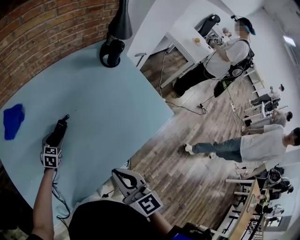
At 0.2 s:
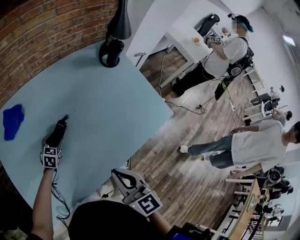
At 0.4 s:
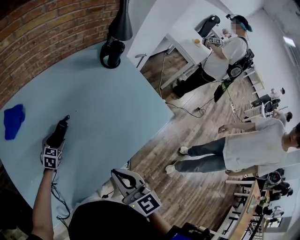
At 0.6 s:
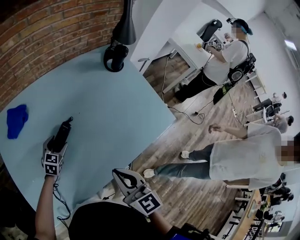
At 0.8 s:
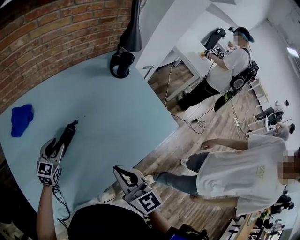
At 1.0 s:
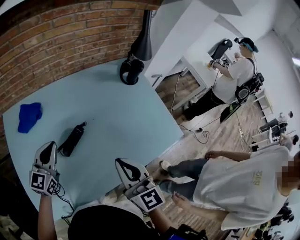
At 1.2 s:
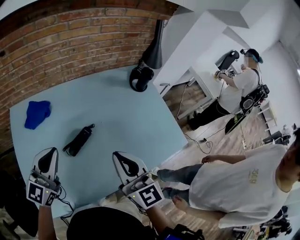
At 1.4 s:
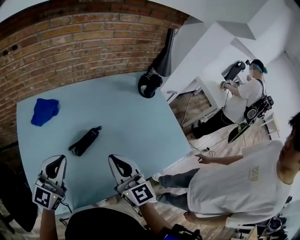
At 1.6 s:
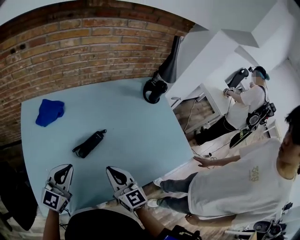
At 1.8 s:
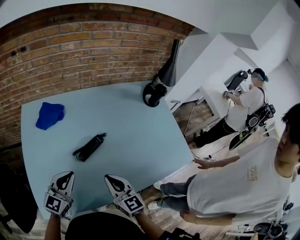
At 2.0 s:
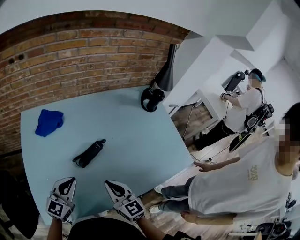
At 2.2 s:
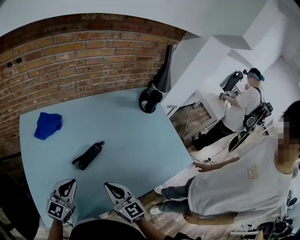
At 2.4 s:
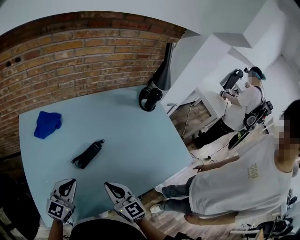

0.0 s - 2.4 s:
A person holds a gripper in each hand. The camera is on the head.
0.0 s - 1.2 s: The right gripper moves upward, forward and to the left, about 15 cm, and changes its angle by some 20 degrees; the left gripper travels upward by some 30 cm, tips its fingers upward by about 50 degrees, and closes up.
1.2 s - 2.4 s: The right gripper moves downward and to the left, about 15 cm, while the left gripper moves downward and backward, approximately 15 cm.

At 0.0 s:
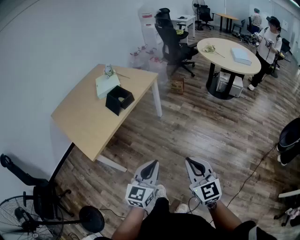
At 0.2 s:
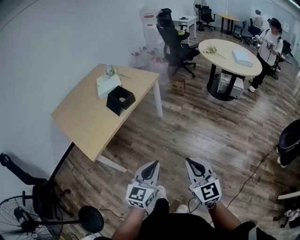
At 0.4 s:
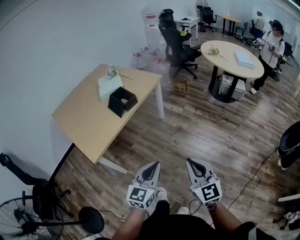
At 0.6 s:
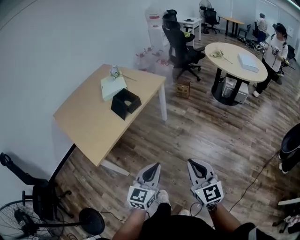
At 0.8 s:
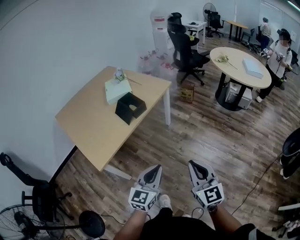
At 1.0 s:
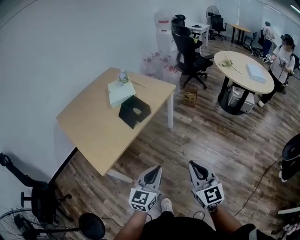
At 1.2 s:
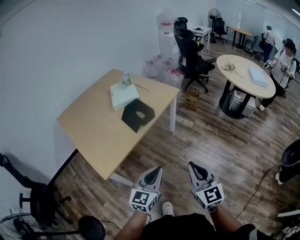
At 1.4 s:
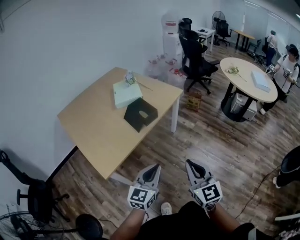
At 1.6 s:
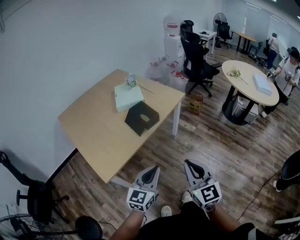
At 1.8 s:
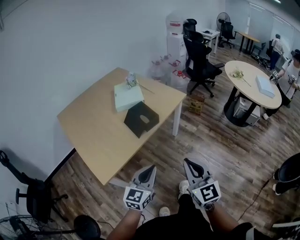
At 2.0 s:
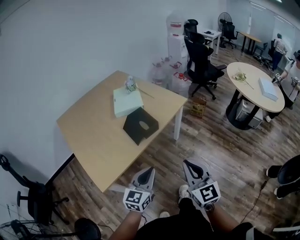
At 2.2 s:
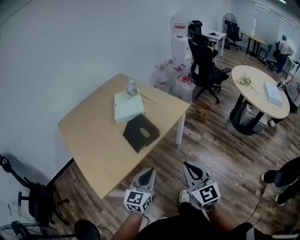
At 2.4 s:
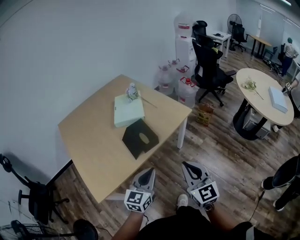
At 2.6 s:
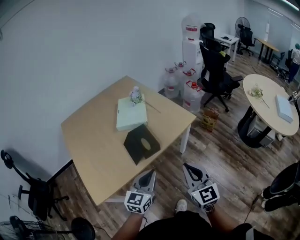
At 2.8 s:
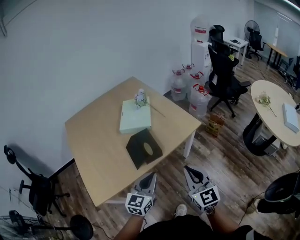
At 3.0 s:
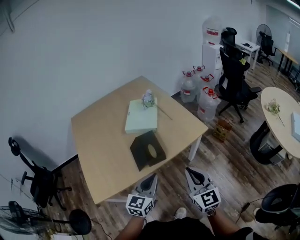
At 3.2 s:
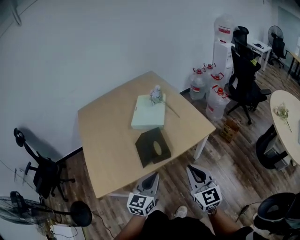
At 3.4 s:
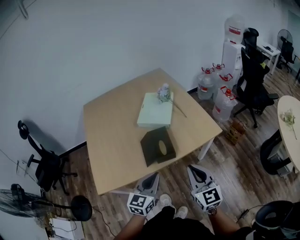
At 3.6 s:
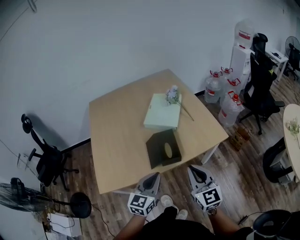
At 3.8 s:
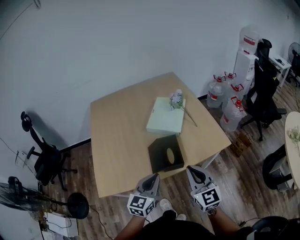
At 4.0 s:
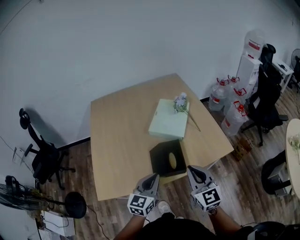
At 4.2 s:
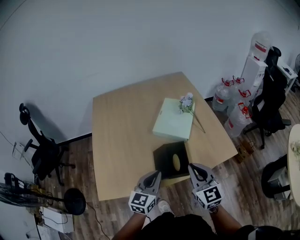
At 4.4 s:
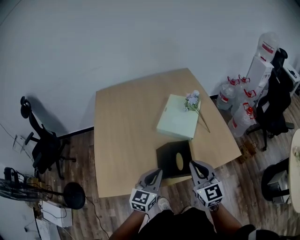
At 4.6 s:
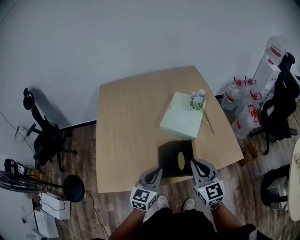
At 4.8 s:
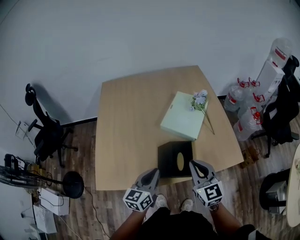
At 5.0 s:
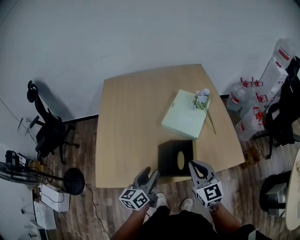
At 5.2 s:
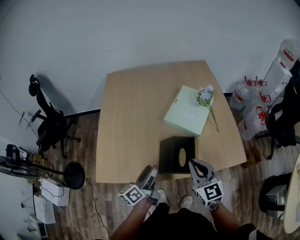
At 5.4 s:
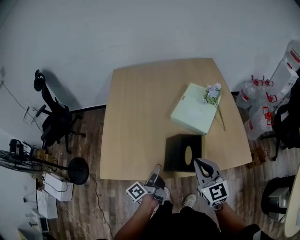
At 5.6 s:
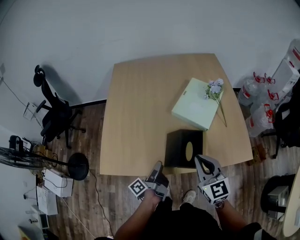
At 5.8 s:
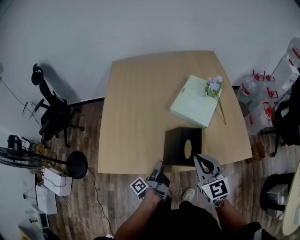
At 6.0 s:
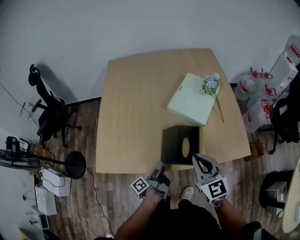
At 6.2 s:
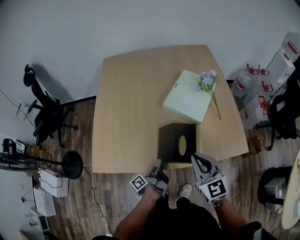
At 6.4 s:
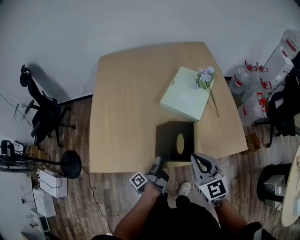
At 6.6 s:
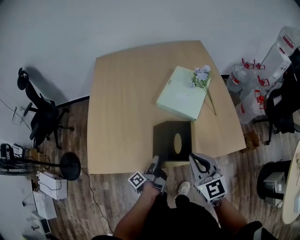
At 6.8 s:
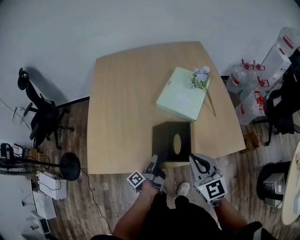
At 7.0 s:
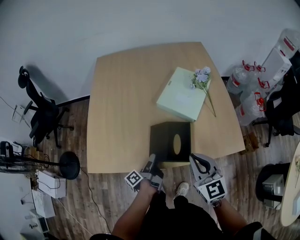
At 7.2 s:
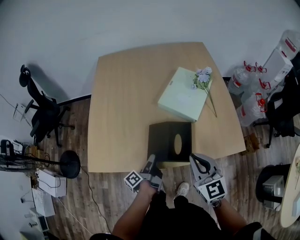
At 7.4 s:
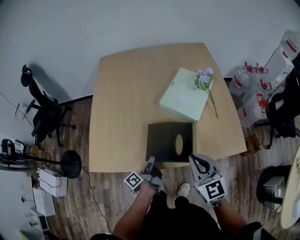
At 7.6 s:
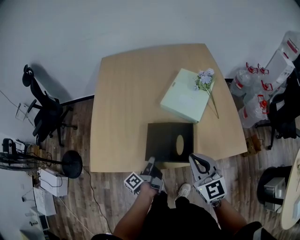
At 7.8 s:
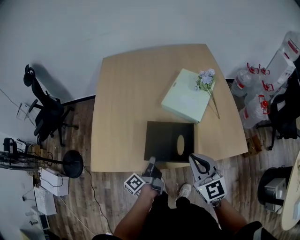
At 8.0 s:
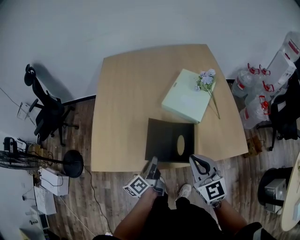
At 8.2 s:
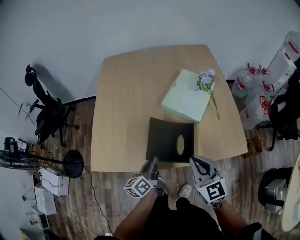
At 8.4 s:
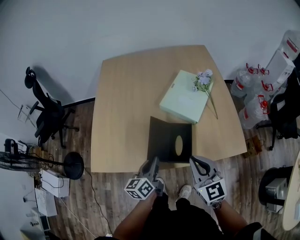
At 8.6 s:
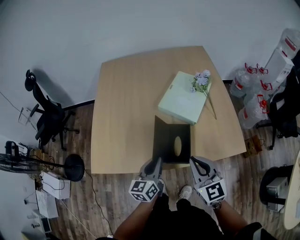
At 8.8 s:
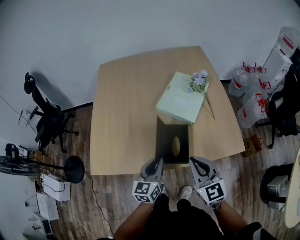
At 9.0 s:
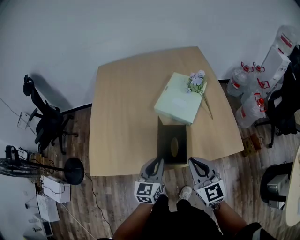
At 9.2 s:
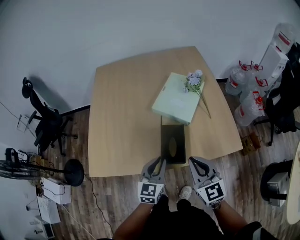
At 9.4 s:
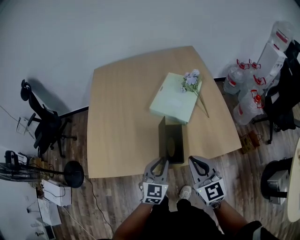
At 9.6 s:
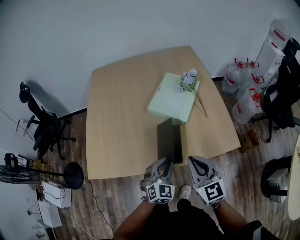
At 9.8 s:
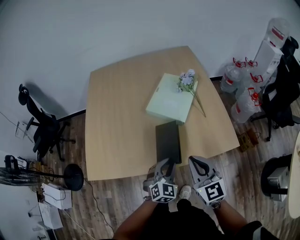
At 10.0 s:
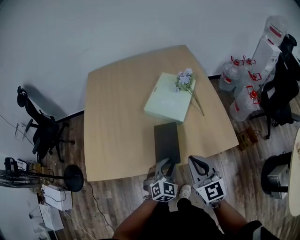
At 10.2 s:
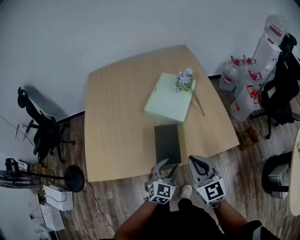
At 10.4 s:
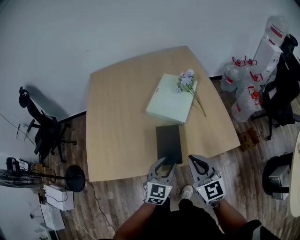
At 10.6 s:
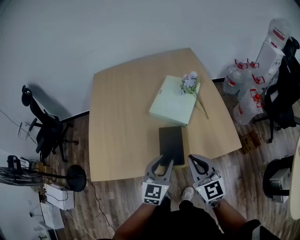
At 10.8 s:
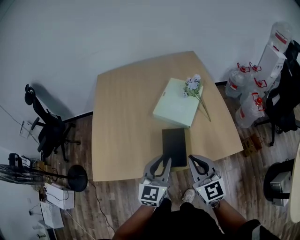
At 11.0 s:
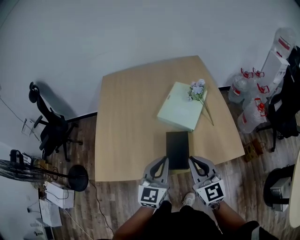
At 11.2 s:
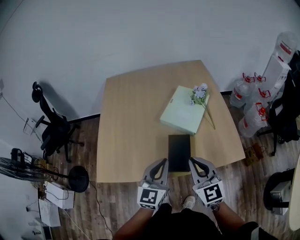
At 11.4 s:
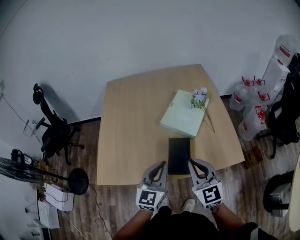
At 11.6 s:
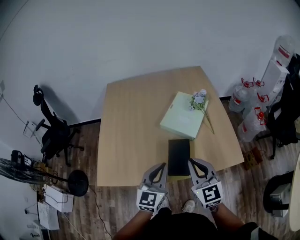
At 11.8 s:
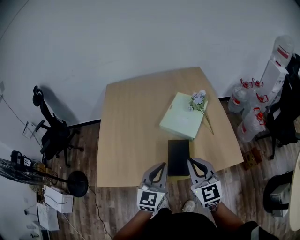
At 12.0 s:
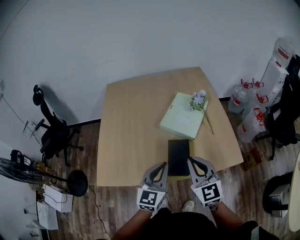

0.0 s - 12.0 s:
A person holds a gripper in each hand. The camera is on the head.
0.0 s - 1.6 s: The grippers both shift forward and to the left by approximately 25 cm.
1.6 s - 3.0 s: The two grippers go some 30 cm forward. The left gripper swivels approximately 20 degrees.
3.0 s - 4.4 s: The two grippers go approximately 20 cm forward and to the left.
4.4 s - 6.0 s: The left gripper goes about 15 cm downward, rolls counterclockwise, seen from behind, by about 100 degrees, and opens up.
6.0 s - 7.6 s: The left gripper closes its fingers.
7.6 s - 9.0 s: The left gripper goes roughly 10 cm upward and to the right, and rolls clockwise, seen from behind, by some 80 degrees.
9.0 s - 10.4 s: The left gripper travels to the right by approximately 10 cm, changes its angle by roughly 20 degrees, and opens up.
10.4 s - 12.0 s: The right gripper is displaced upward by approximately 5 cm. The left gripper goes approximately 15 cm upward and to the left, and closes its fingers.

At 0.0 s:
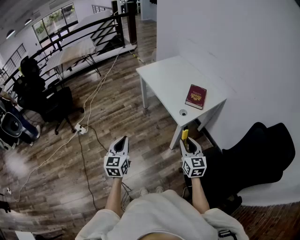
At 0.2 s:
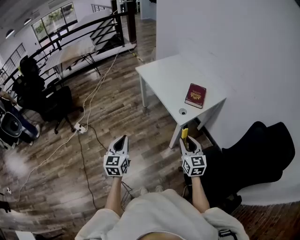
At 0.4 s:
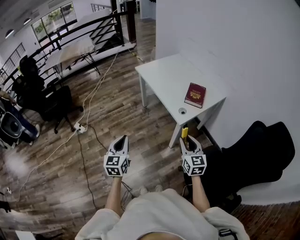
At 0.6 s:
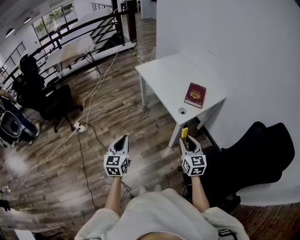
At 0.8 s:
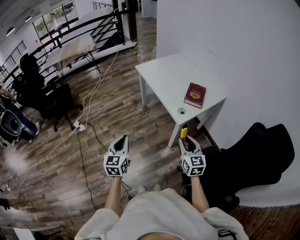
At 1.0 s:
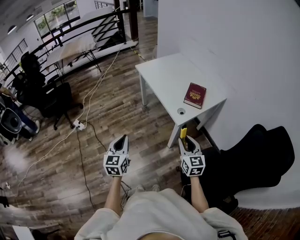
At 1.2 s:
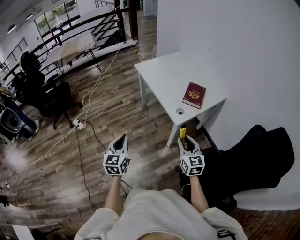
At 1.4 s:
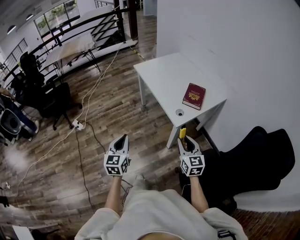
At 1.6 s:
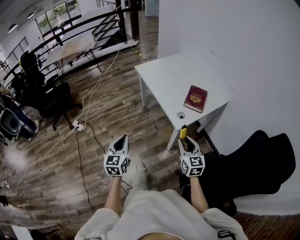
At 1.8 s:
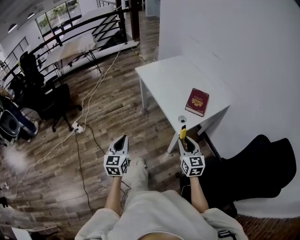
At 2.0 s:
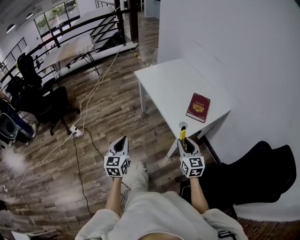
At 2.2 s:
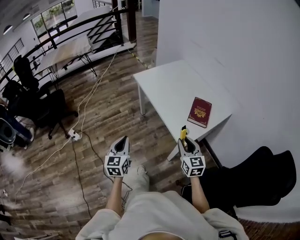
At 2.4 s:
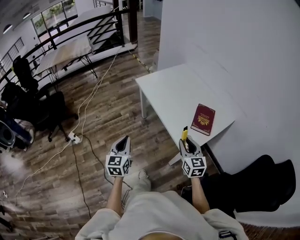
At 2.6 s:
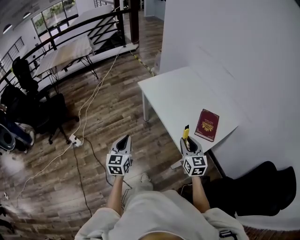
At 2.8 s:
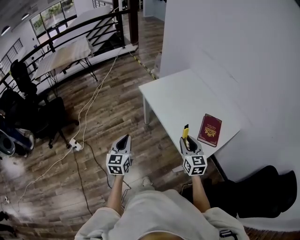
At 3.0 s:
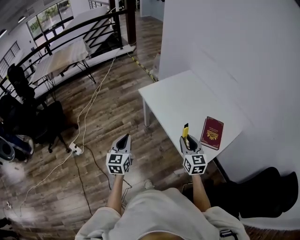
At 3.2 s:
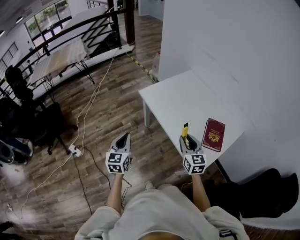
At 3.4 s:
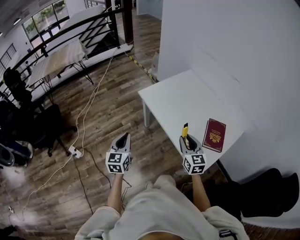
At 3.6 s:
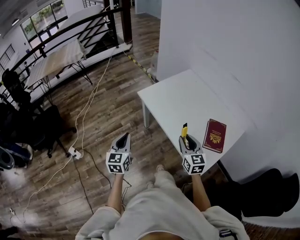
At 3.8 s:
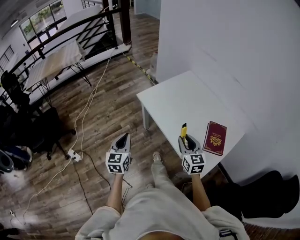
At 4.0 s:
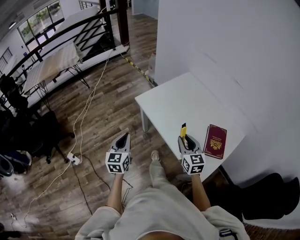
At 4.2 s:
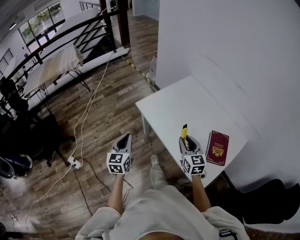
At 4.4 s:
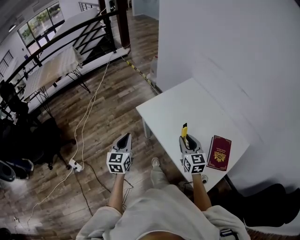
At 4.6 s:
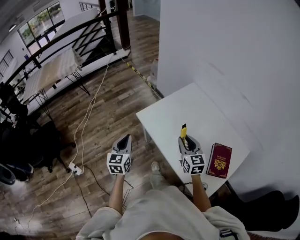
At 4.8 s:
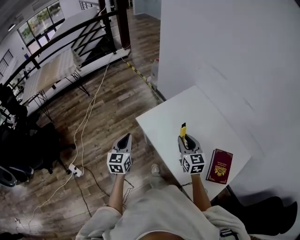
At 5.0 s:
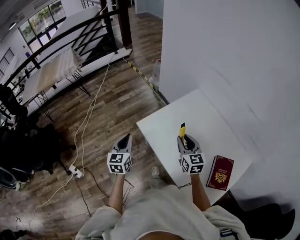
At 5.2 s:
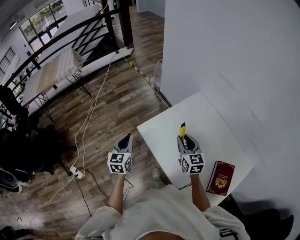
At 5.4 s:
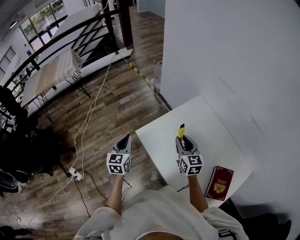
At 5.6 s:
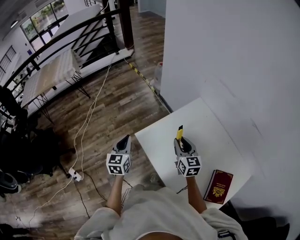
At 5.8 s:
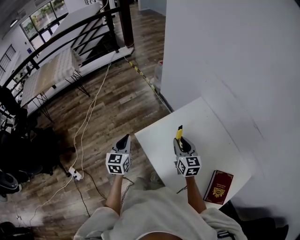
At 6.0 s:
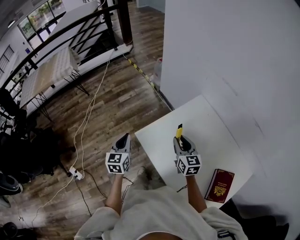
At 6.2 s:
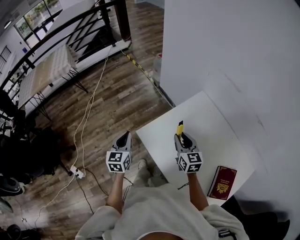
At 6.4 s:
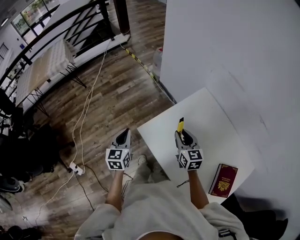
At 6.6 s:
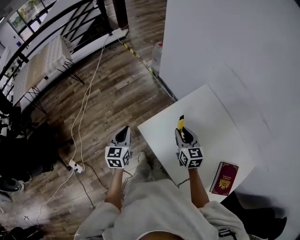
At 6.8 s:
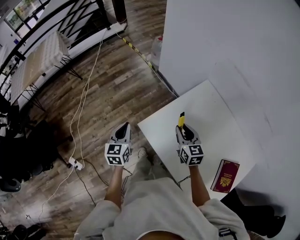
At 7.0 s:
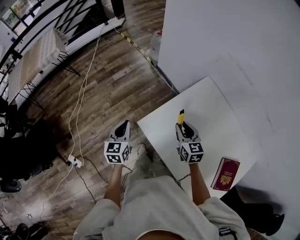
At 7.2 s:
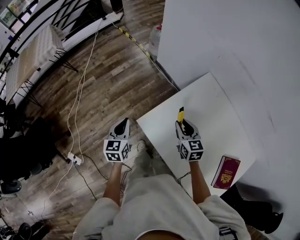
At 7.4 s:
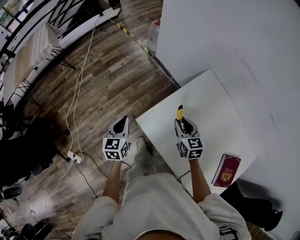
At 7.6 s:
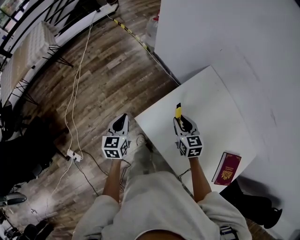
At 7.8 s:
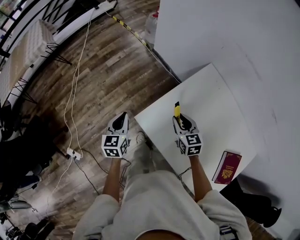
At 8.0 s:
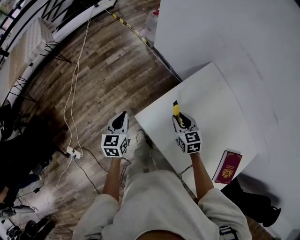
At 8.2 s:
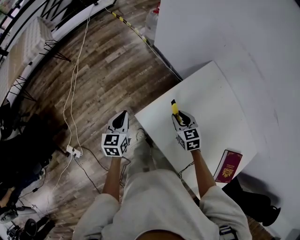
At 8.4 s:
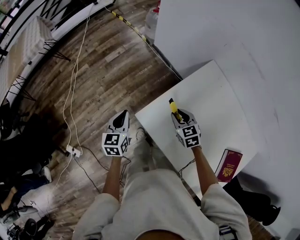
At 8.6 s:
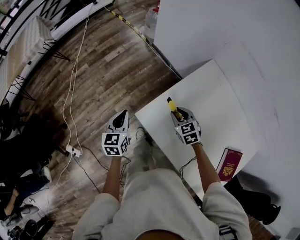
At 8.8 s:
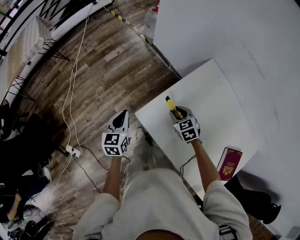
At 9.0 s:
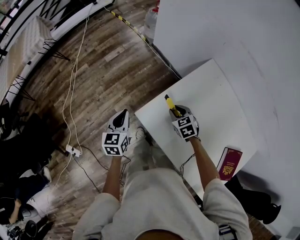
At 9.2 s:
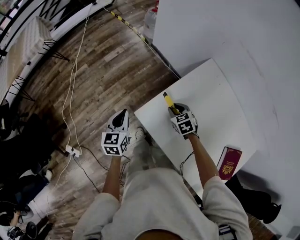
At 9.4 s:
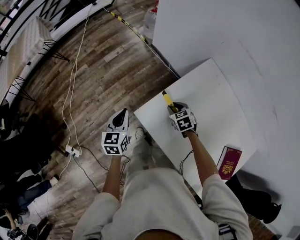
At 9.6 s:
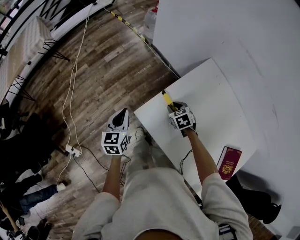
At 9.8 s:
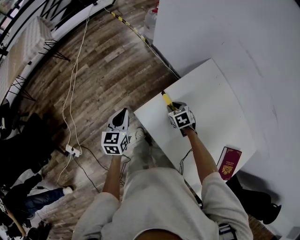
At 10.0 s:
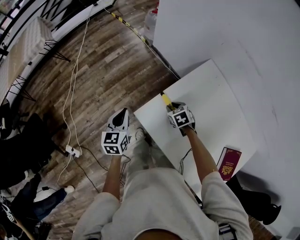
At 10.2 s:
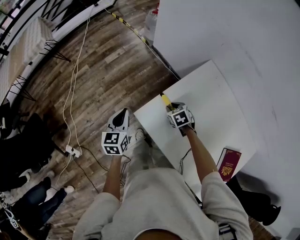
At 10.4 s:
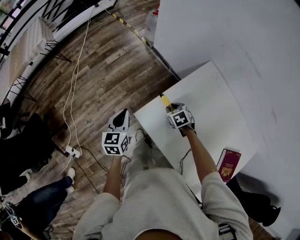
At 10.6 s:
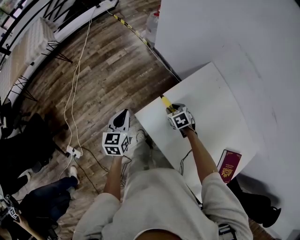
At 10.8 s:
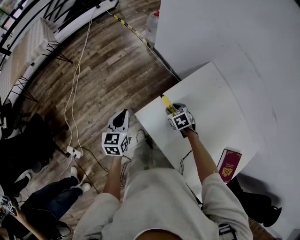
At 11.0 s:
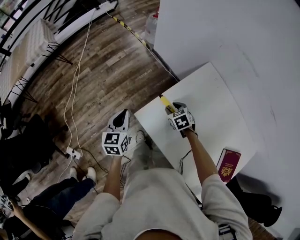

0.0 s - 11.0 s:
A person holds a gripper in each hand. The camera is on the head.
0.0 s - 1.6 s: The right gripper heads forward, covering some 5 cm. The left gripper ends up approximately 5 cm from where it was.
1.6 s - 3.2 s: Both grippers travel together forward, roughly 40 cm.
3.2 s - 4.8 s: The grippers both shift forward by approximately 30 cm.
4.8 s - 6.2 s: The two grippers go roughly 15 cm forward.
6.2 s - 7.8 s: The grippers both shift downward and forward by some 15 cm.
7.8 s - 9.4 s: The right gripper heads downward, covering about 10 cm, and changes its angle by roughly 20 degrees.
9.4 s - 11.0 s: The grippers stay close to where they were, moving slightly.
